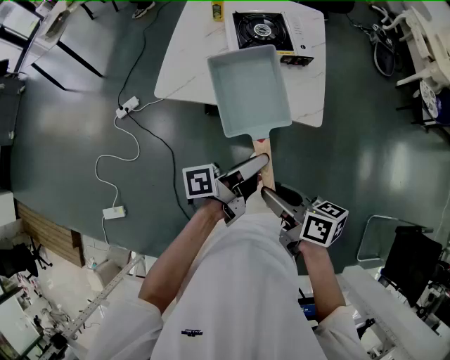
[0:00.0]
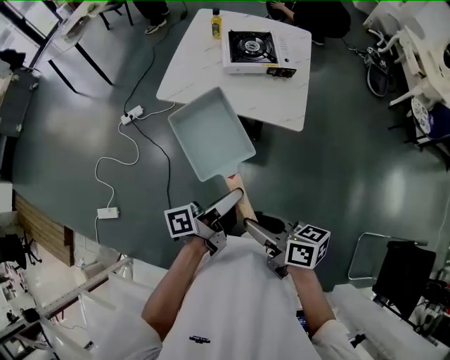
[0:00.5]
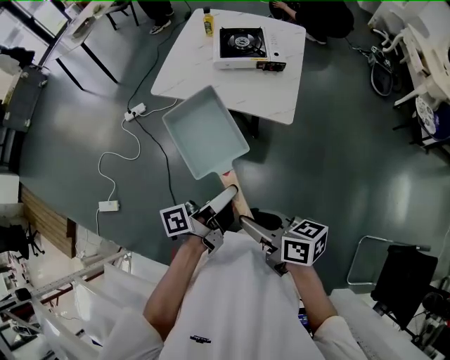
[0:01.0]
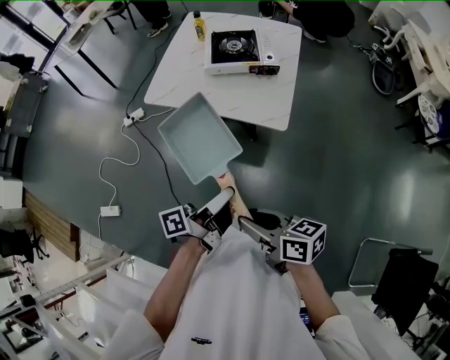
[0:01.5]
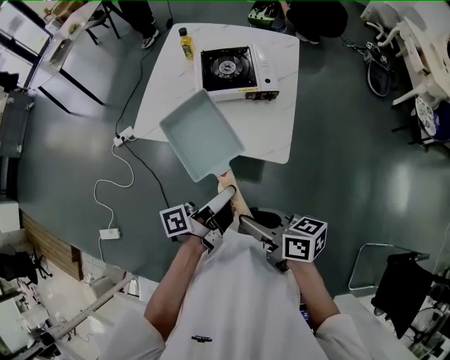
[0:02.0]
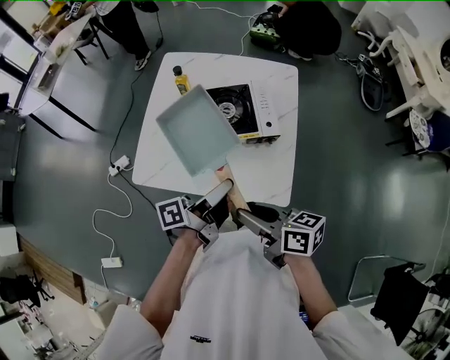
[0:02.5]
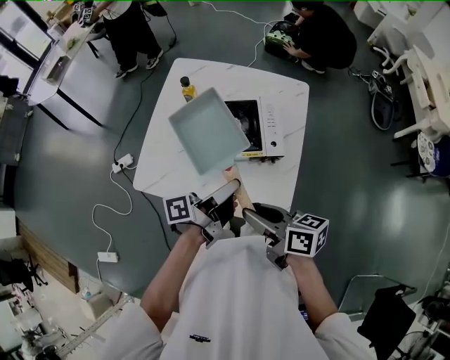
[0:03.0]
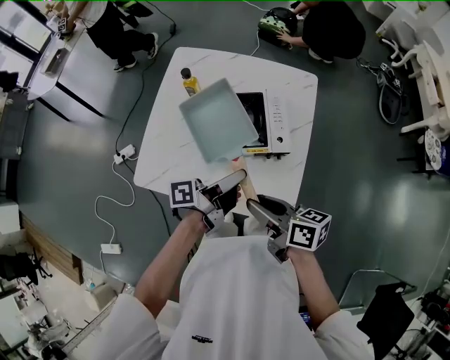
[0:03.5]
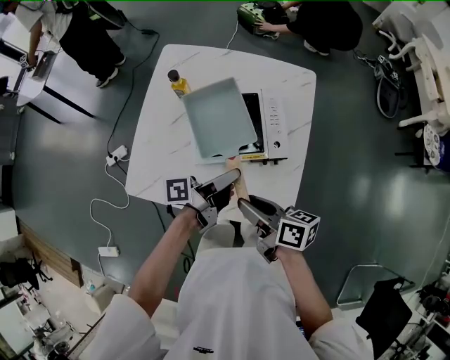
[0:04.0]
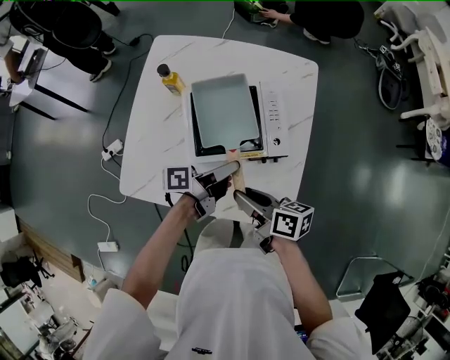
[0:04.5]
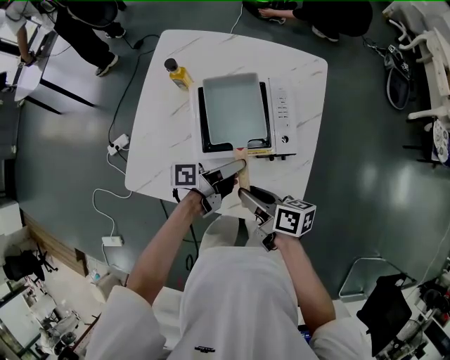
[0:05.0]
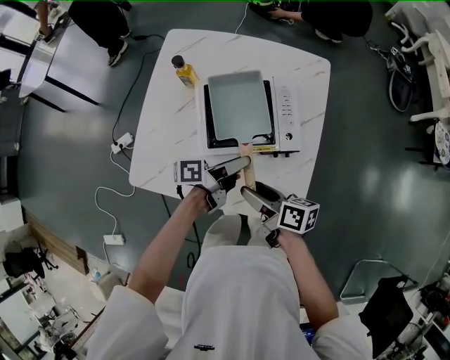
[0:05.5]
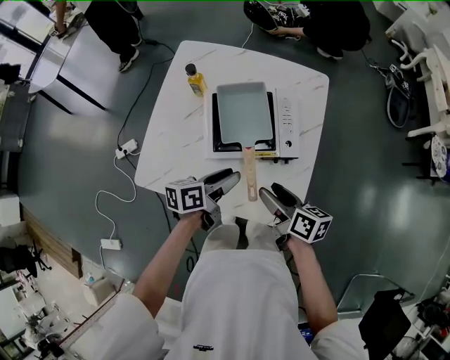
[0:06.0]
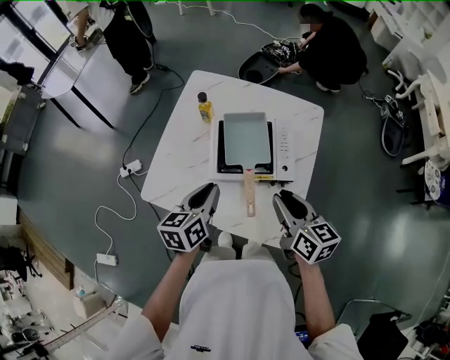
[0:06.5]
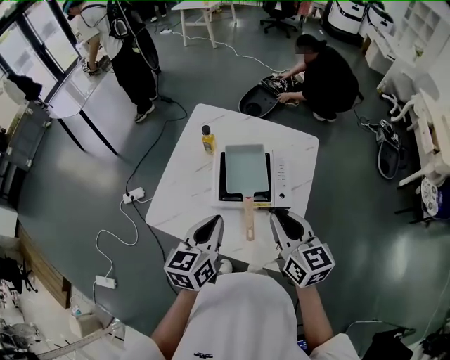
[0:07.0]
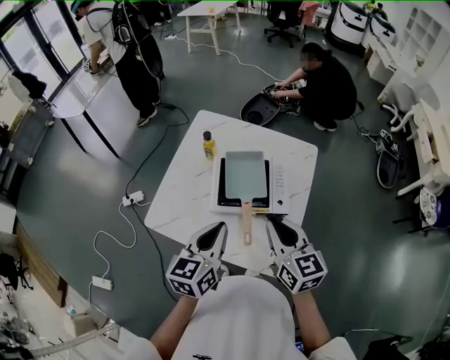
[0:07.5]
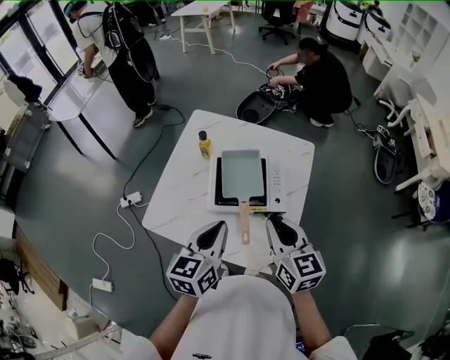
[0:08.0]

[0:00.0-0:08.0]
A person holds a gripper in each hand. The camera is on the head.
0:02.0 to 0:04.0: The right gripper shifts by approximately 35 cm.
0:04.0 to 0:06.0: The right gripper moves roughly 5 cm, and opens its fingers.
0:06.0 to 0:08.0: The right gripper shifts about 20 cm upward, rotates around the line of its fingers by some 40 degrees, counterclockwise from behind, and closes up.

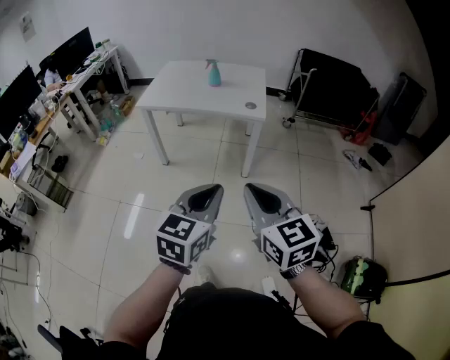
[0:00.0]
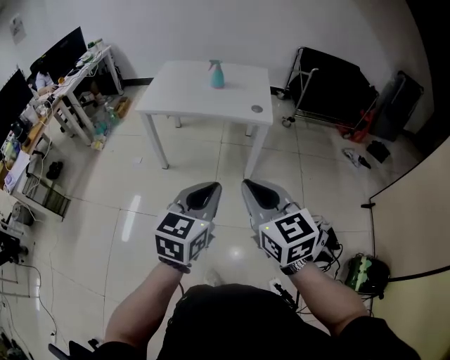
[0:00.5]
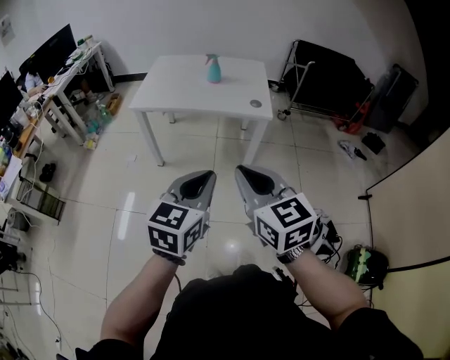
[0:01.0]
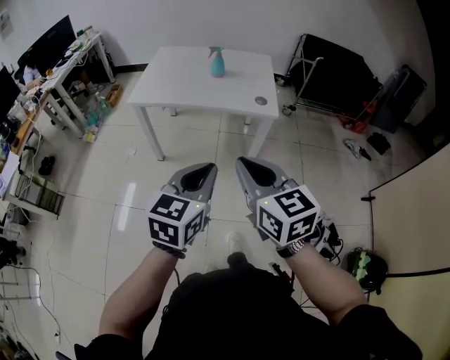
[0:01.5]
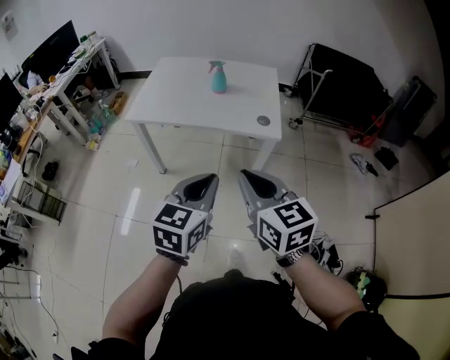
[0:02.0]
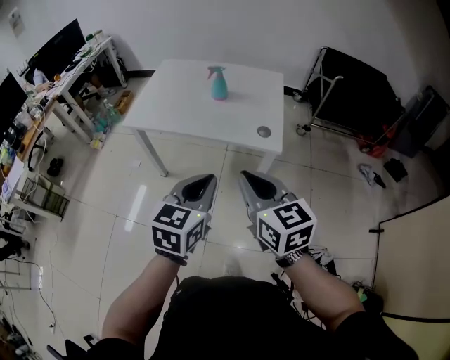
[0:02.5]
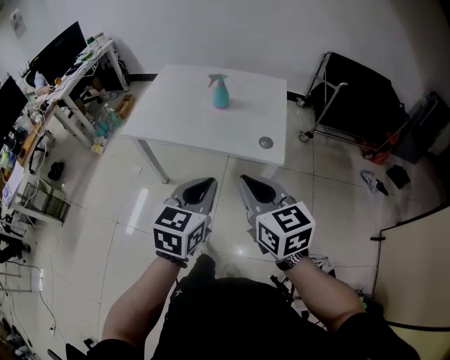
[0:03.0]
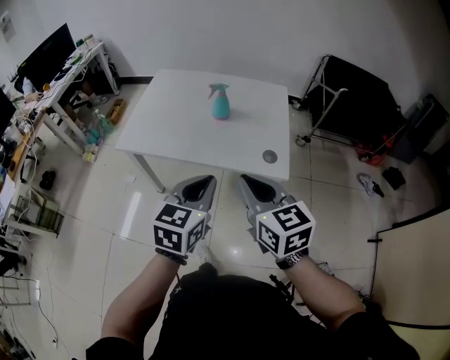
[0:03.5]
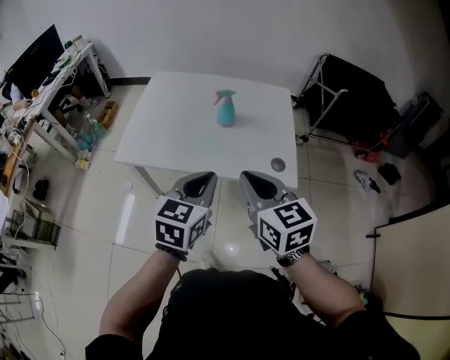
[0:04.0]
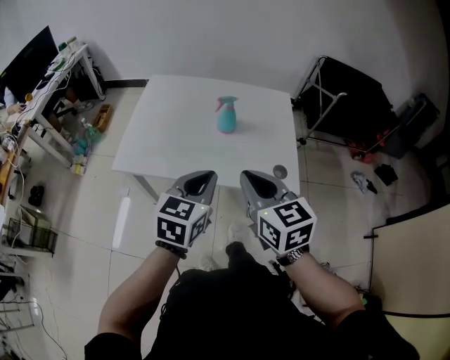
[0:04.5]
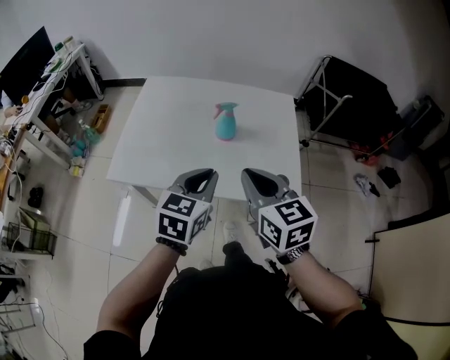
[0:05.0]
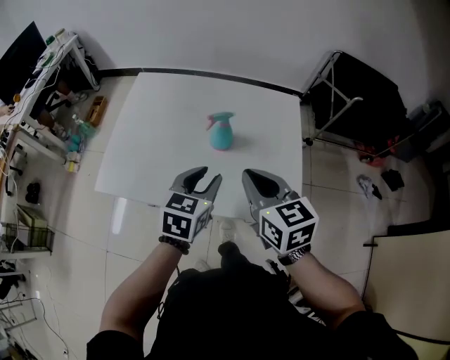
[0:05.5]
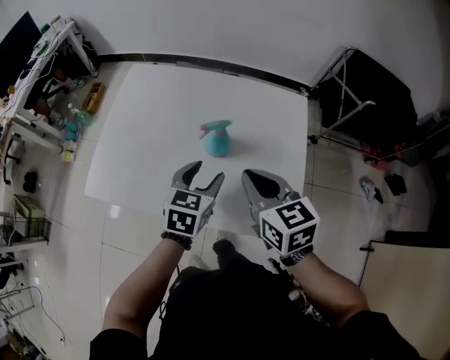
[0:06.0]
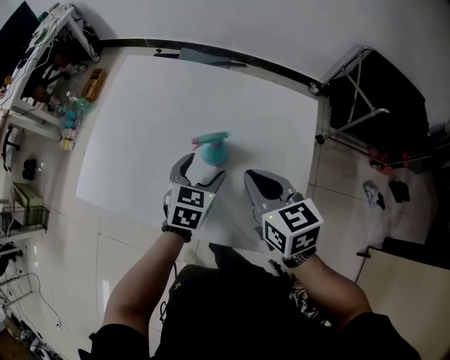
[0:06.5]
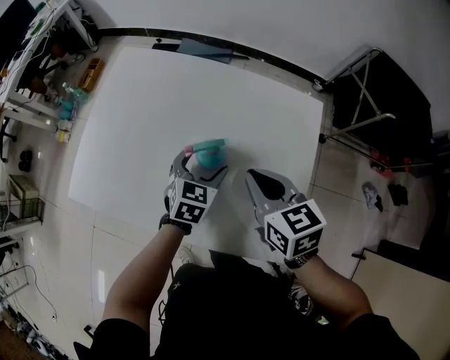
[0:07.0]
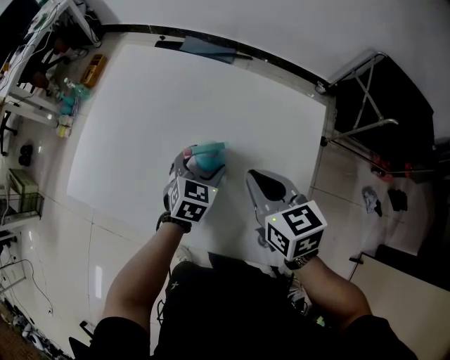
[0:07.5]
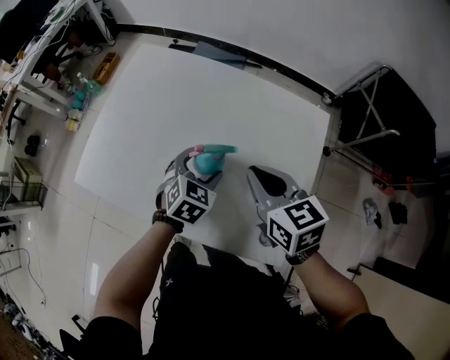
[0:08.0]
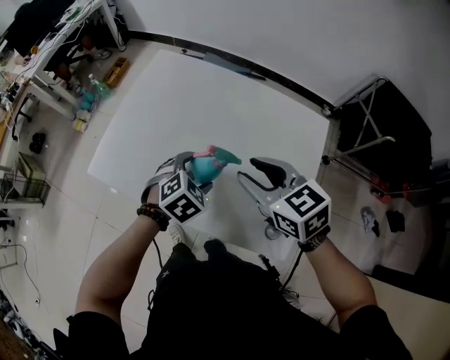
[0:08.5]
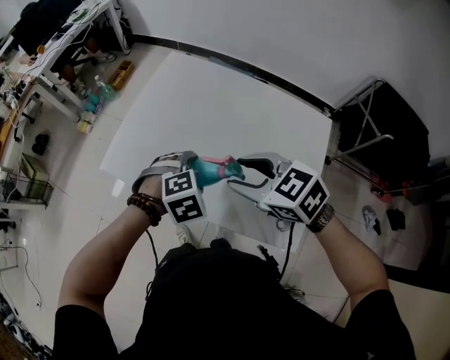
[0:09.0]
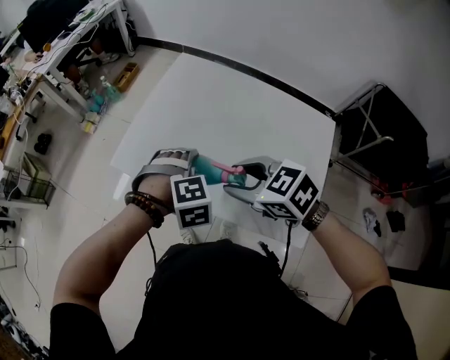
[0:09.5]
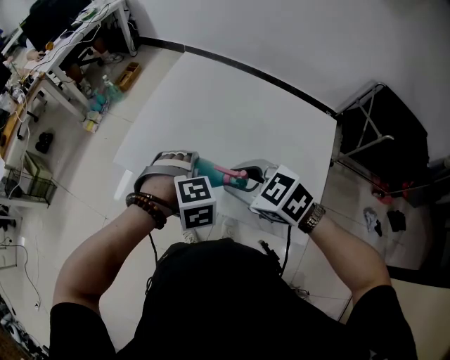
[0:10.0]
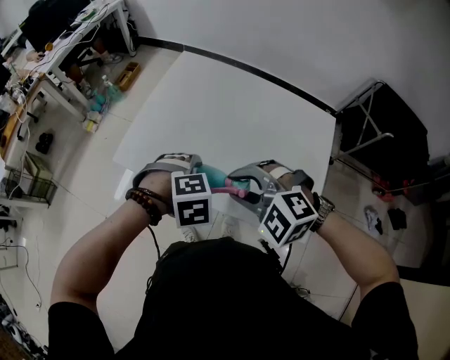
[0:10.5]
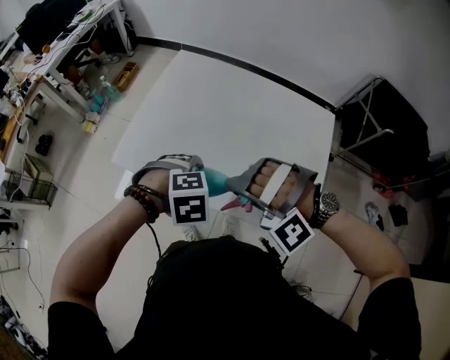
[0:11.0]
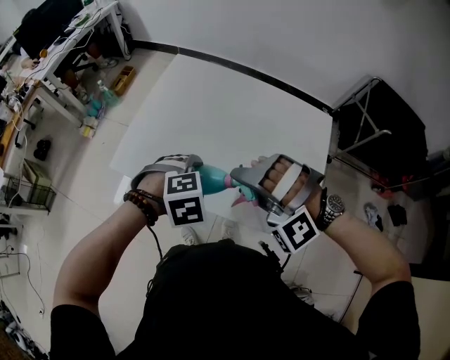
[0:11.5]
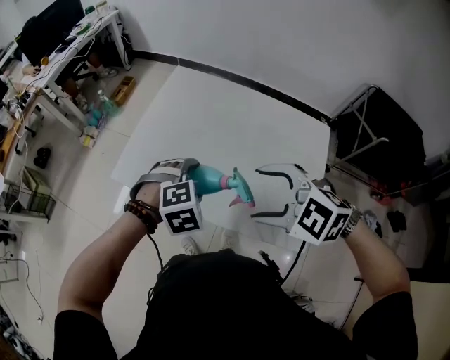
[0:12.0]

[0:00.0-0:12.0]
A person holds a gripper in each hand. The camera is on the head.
0:00.0 to 0:02.0: The two grippers go approximately 25 cm forward.
0:02.0 to 0:04.0: Both grippers move forward, approximately 25 cm.
0:04.0 to 0:06.0: The left gripper goes about 25 cm forward and downward, and opens up; the right gripper shifts roughly 25 cm forward.
0:06.0 to 0:08.0: The right gripper heads forward, covering some 5 cm. The left gripper moves downward and forward, some 10 cm, and rotates some 20 degrees.
0:08.0 to 0:10.0: The left gripper moves roughly 20 cm, and rotates around the line of its fingers by some 50 degrees, clockwise from behind, while the right gripper changes place by roughly 20 cm, and turns by about 40 degrees.
0:10.0 to 0:12.0: The right gripper moves some 10 cm, swivels roughly 20 degrees, and opens its fingers.

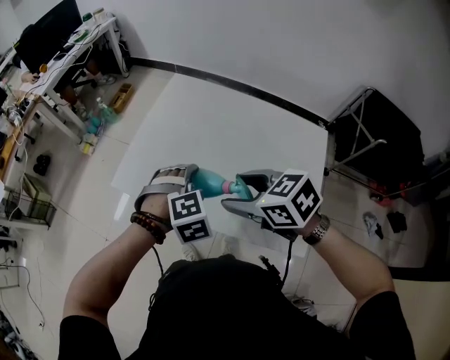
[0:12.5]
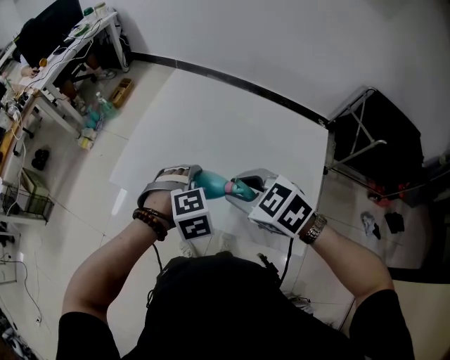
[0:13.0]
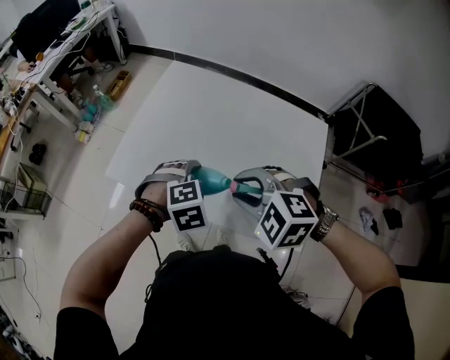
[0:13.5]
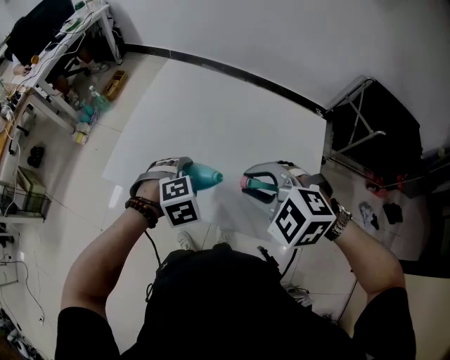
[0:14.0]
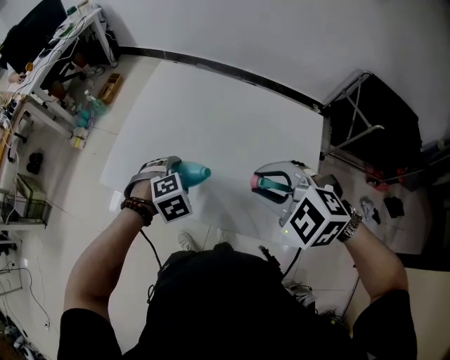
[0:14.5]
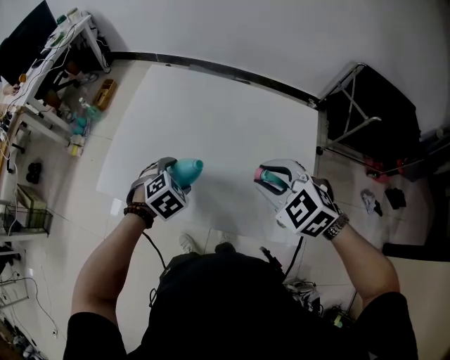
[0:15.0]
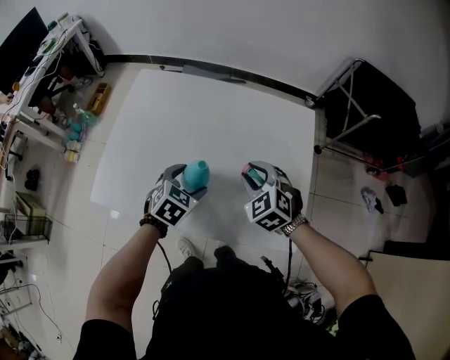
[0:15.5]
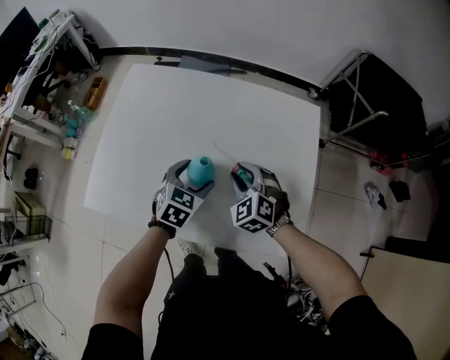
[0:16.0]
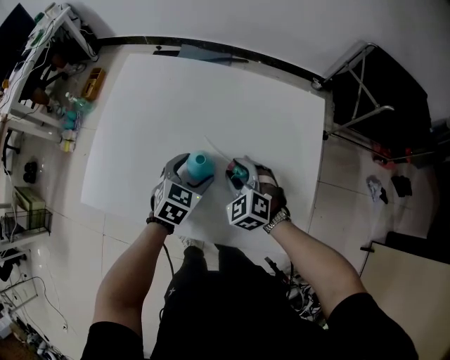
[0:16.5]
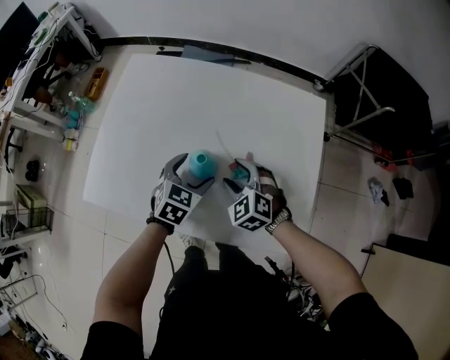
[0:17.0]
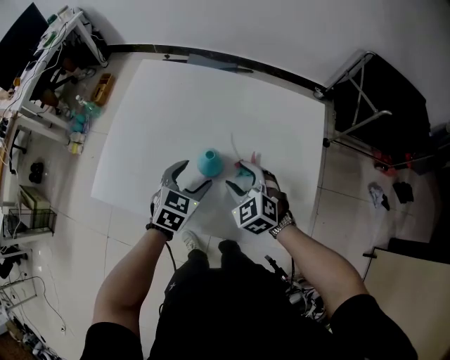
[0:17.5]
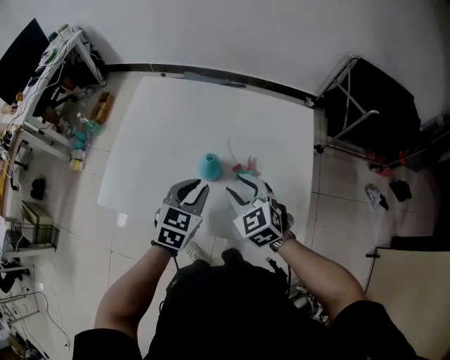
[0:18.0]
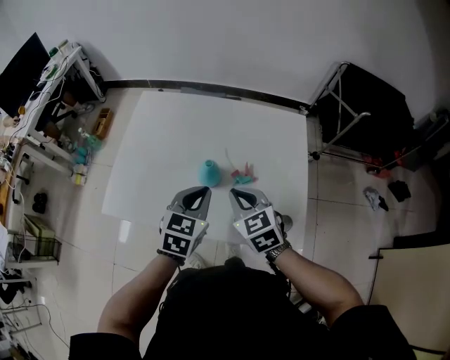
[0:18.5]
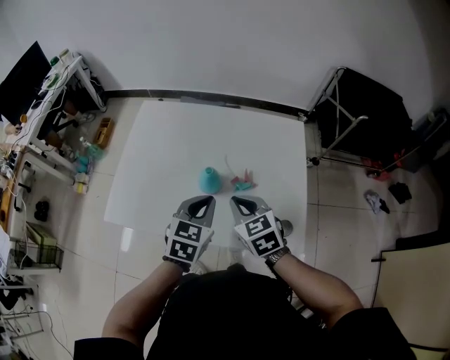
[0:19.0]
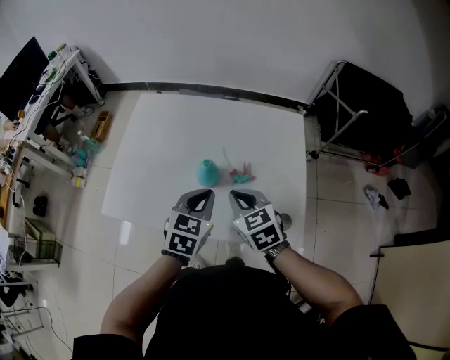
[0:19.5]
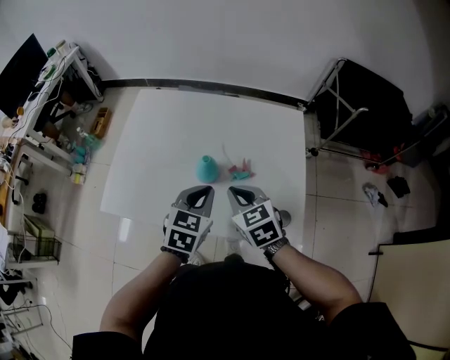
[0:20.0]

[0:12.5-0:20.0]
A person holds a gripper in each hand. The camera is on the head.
0:12.5 to 0:14.5: The right gripper moves to the right, approximately 5 cm, twists about 40 degrees counterclockwise, seen from behind, and closes up. The left gripper goes some 5 cm downward.
0:14.5 to 0:16.5: The right gripper travels downward and forward by about 25 cm, and changes its angle by approximately 30 degrees; the left gripper is displaced to the right and forward by about 15 cm, and swivels about 40 degrees.
0:16.5 to 0:18.0: The grippers both shift upward and backward by about 10 cm. The left gripper closes.
0:18.0 to 0:20.0: The right gripper closes.
